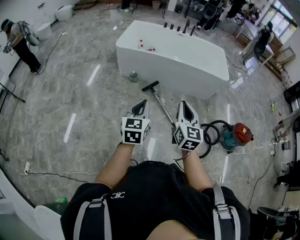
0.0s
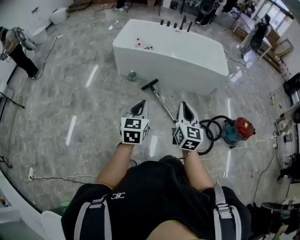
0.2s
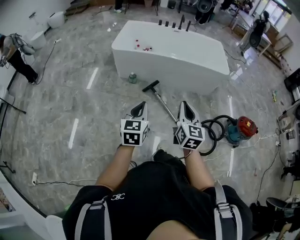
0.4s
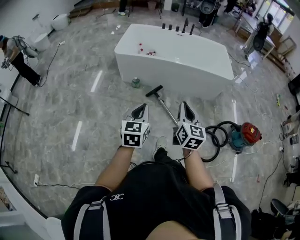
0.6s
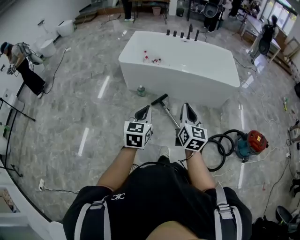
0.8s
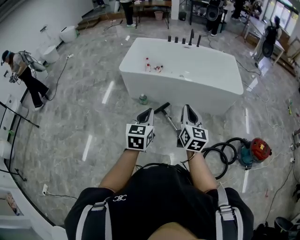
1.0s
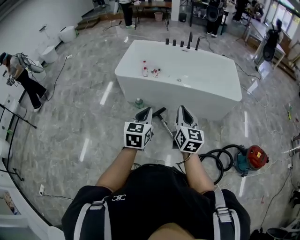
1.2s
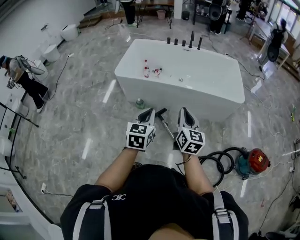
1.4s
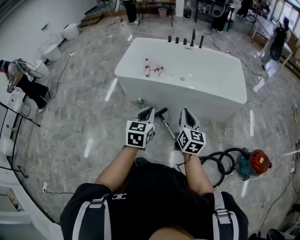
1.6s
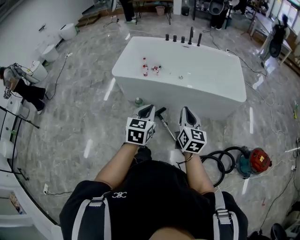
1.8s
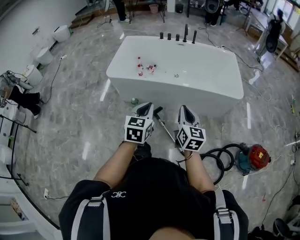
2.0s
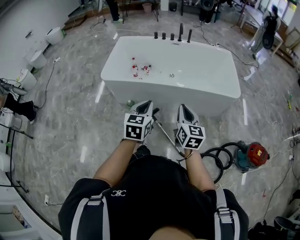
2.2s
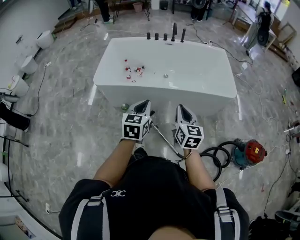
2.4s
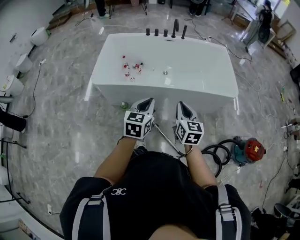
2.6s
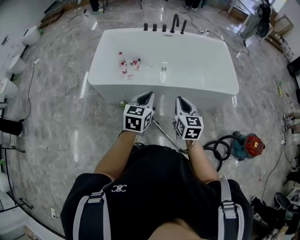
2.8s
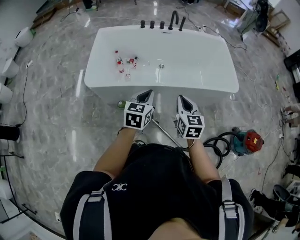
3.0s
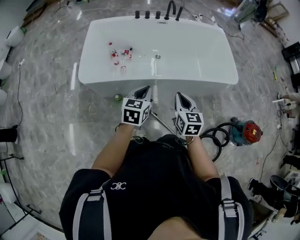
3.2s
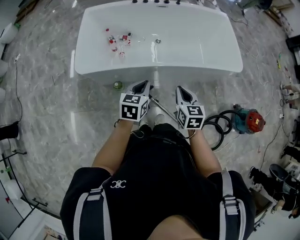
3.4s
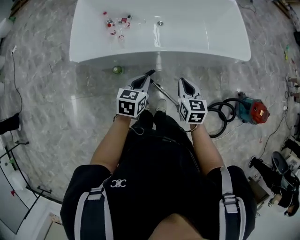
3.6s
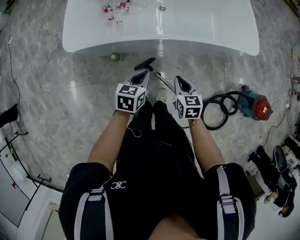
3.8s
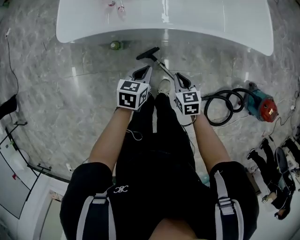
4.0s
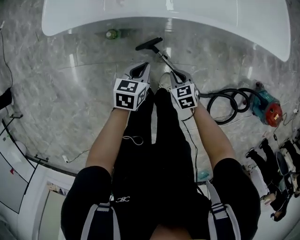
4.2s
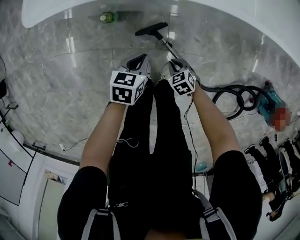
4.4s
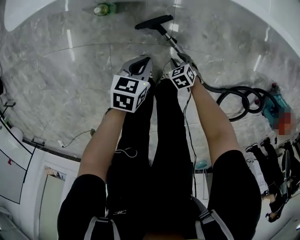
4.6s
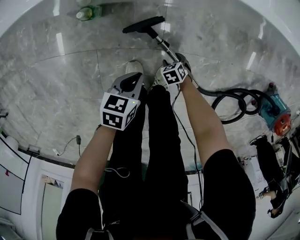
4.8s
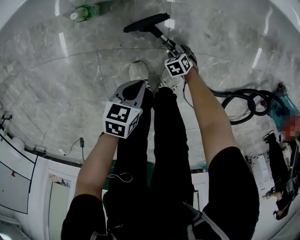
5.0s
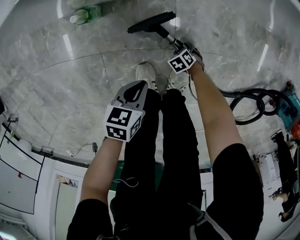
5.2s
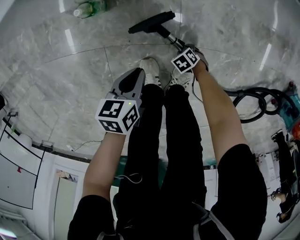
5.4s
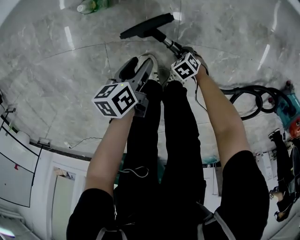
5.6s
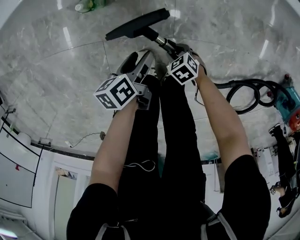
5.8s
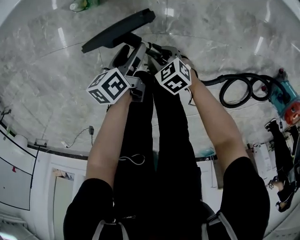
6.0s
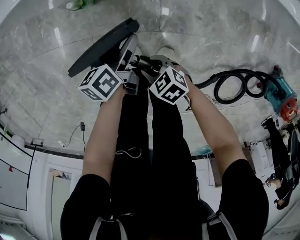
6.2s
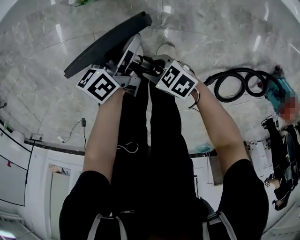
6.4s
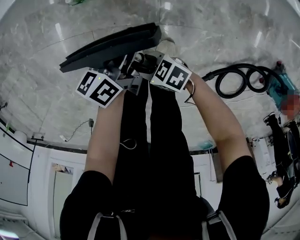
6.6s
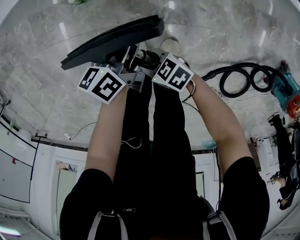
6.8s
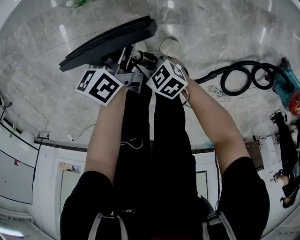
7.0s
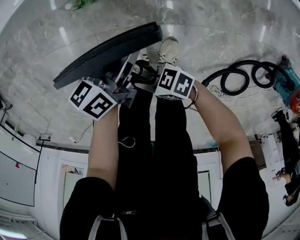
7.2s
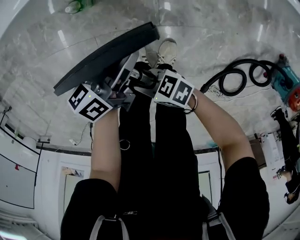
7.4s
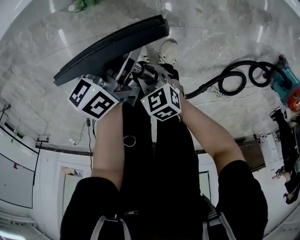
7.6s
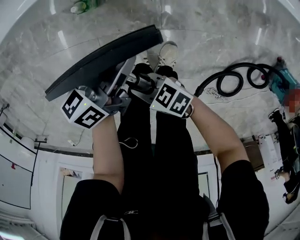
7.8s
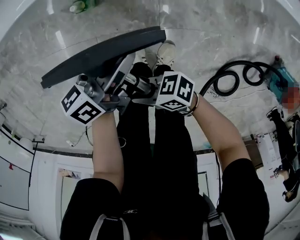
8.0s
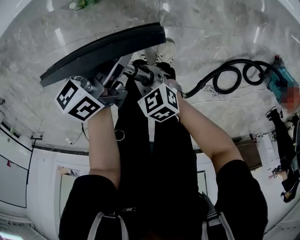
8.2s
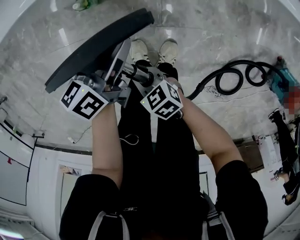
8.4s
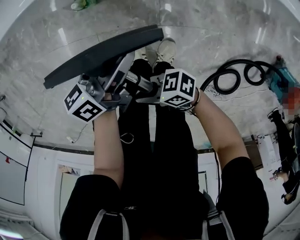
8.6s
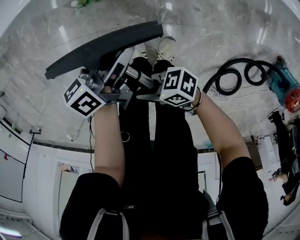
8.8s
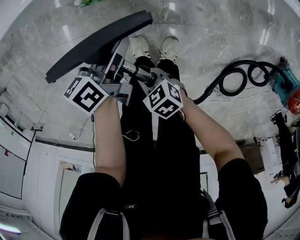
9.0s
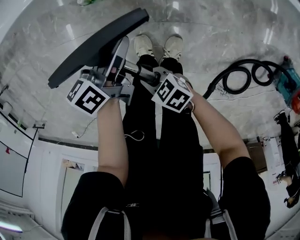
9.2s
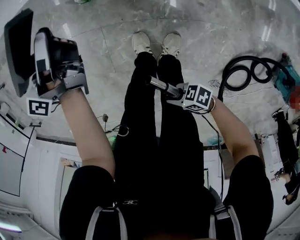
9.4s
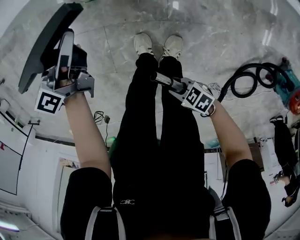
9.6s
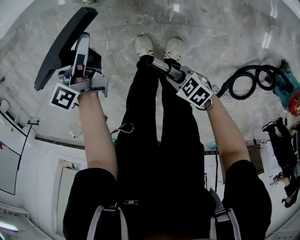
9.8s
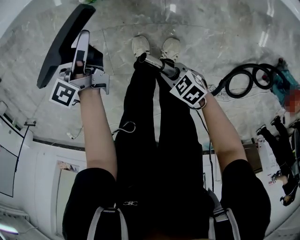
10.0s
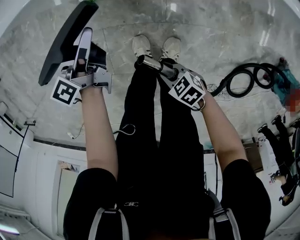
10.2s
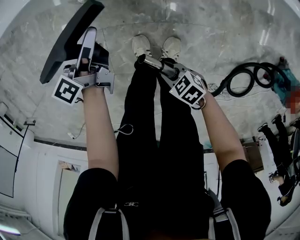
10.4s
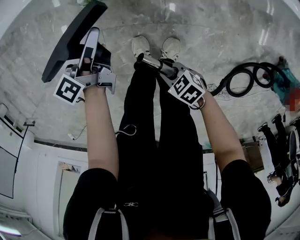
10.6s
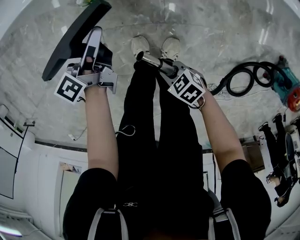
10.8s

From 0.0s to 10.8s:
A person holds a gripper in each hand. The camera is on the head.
From 0.0s to 1.6s: Both grippers travel together forward, about 35 cm.
From 1.6s to 3.0s: The left gripper heads forward, covering about 30 cm, and rotates roughly 20 degrees, while the right gripper travels forward and to the left by some 30 cm.
From 3.0s to 4.6s: The two grippers go some 70 cm downward. The right gripper tilts its fingers roughly 50 degrees downward, and opens up. The left gripper turns by some 40 degrees.
From 4.6s to 6.2s: The left gripper rotates about 40 degrees, and opens, while the right gripper travels downward and back again, approximately 20 cm each way, swivels about 30 degrees, and opens, then closes again.
From 6.2s to 7.8s: The two grippers go some 15 cm upward. The right gripper swivels approximately 20 degrees, and closes; the left gripper swivels some 30 degrees, and closes up.
From 9.2s to 10.8s: The left gripper moves some 10 cm upward and comes back.

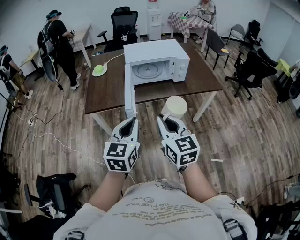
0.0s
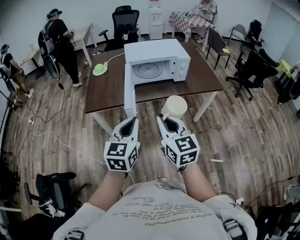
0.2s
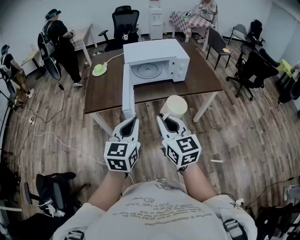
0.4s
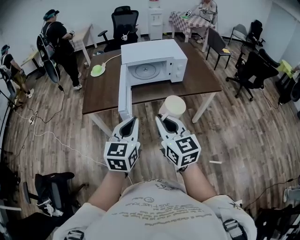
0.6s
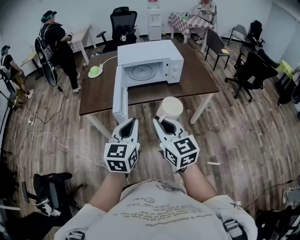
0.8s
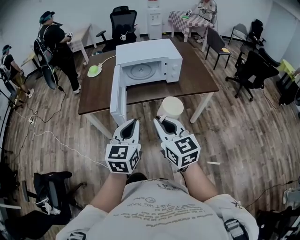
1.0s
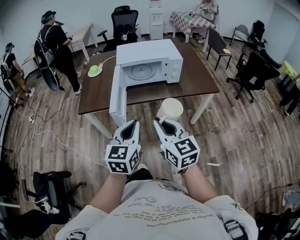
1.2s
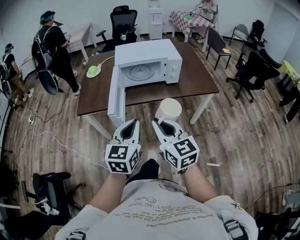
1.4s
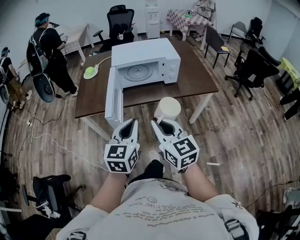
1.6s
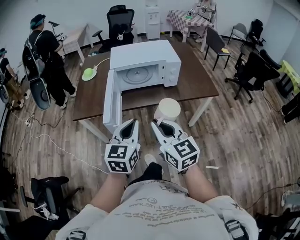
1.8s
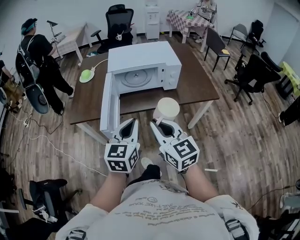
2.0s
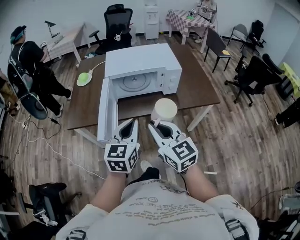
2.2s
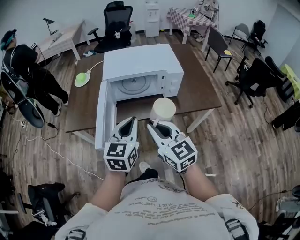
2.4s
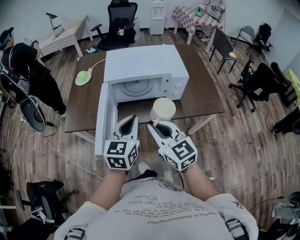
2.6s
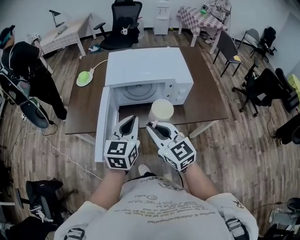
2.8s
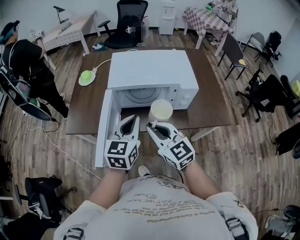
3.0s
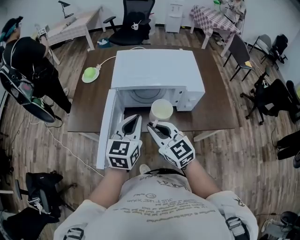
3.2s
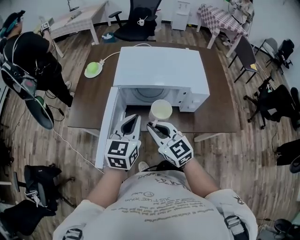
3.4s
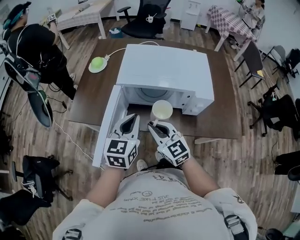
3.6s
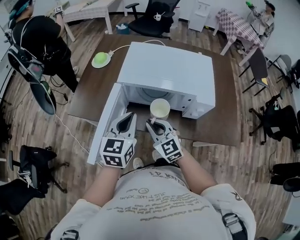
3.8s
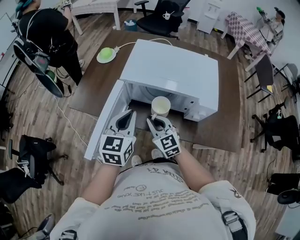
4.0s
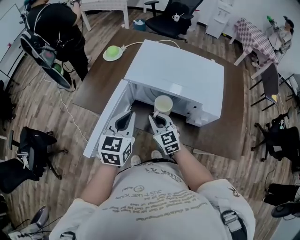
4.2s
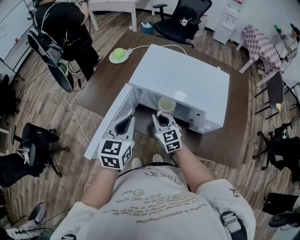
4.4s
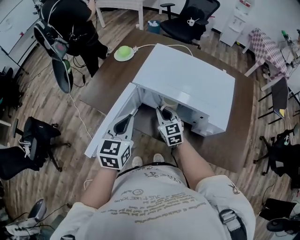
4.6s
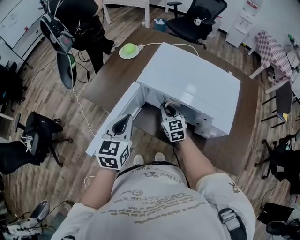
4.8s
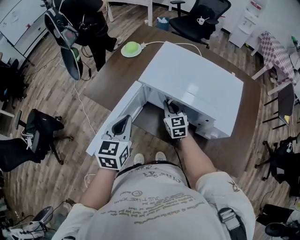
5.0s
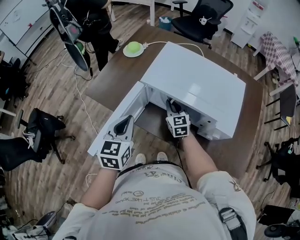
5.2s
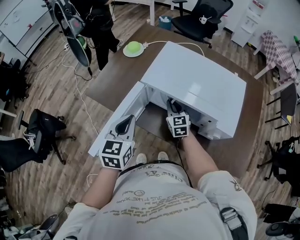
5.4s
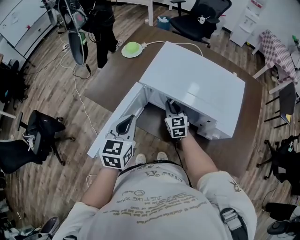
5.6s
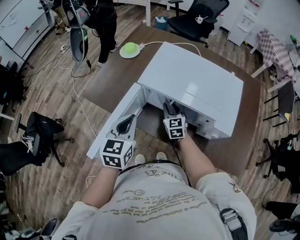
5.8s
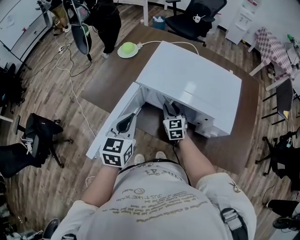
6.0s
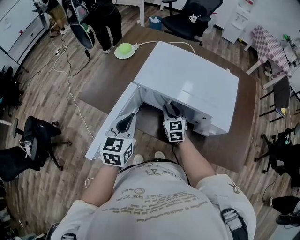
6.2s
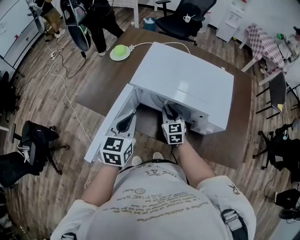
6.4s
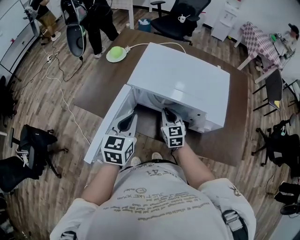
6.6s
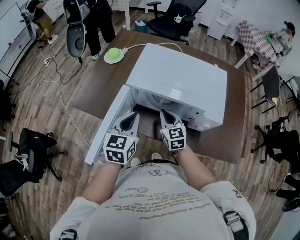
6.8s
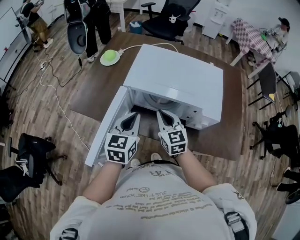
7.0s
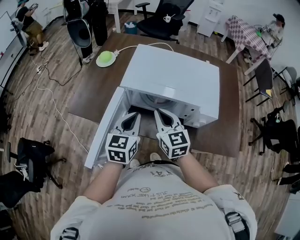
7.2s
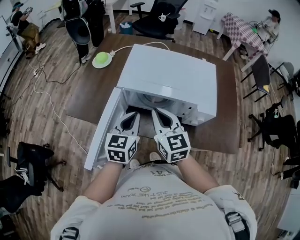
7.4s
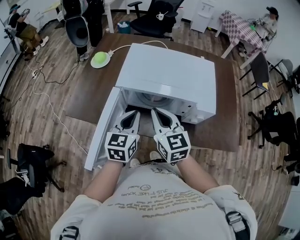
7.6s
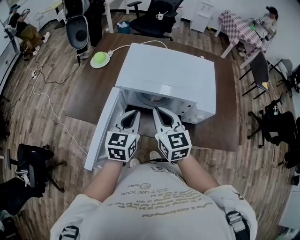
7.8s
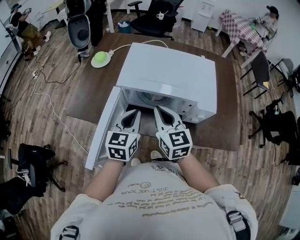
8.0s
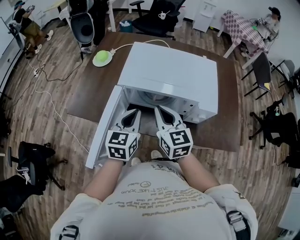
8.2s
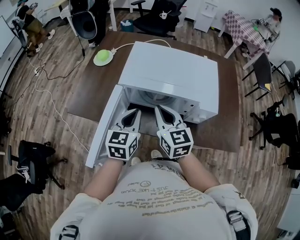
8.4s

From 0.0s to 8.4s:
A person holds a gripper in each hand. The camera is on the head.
From 0.0s to 1.4s: Both grippers travel together to the right, roughly 10 cm.
From 1.4s to 2.8s: The two grippers go some 25 cm forward.
From 2.8s to 4.2s: The left gripper is displaced forward by roughly 10 cm, and rotates some 20 degrees. The right gripper heads forward and downward, covering roughly 20 cm.
From 4.2s to 5.6s: The right gripper heads forward and downward, covering roughly 15 cm. Meanwhile the left gripper changes place by about 5 cm.
From 5.6s to 7.0s: The right gripper heads upward and backward, covering about 15 cm, and opens, then closes again. The left gripper moves to the right, approximately 5 cm.
From 7.0s to 8.4s: The right gripper moves upward, roughly 5 cm.

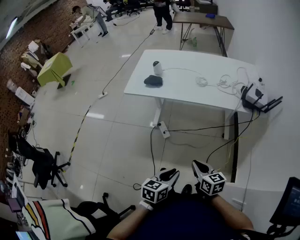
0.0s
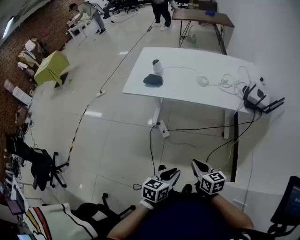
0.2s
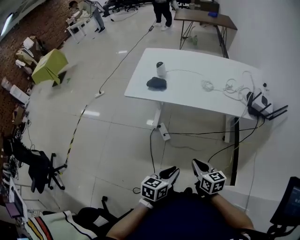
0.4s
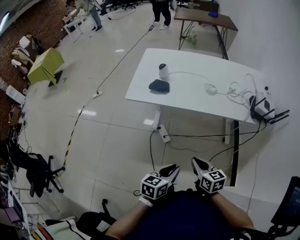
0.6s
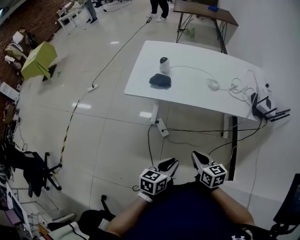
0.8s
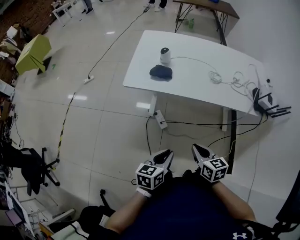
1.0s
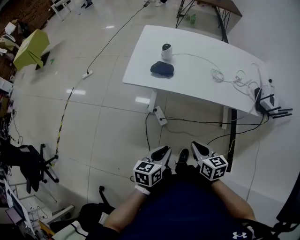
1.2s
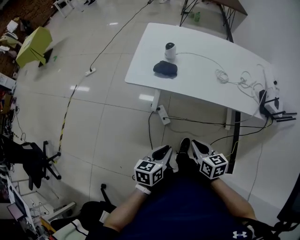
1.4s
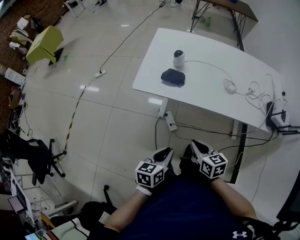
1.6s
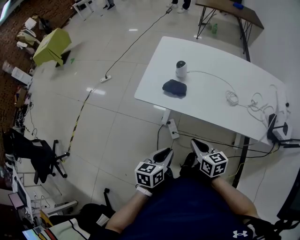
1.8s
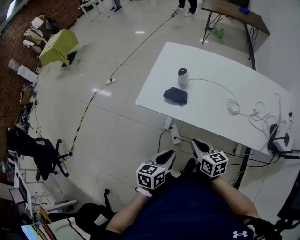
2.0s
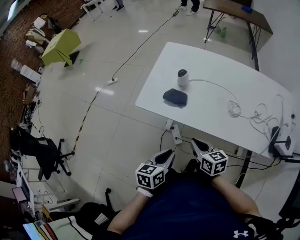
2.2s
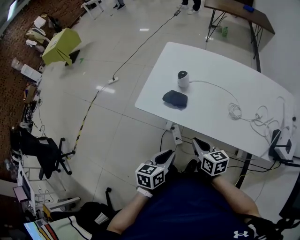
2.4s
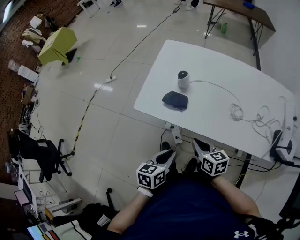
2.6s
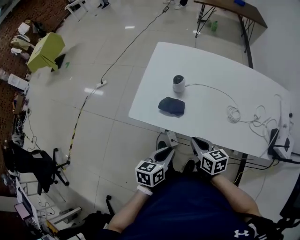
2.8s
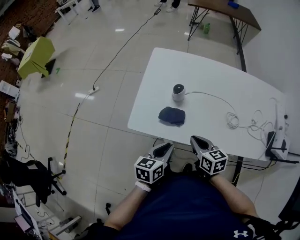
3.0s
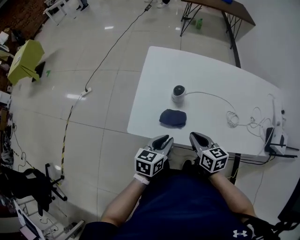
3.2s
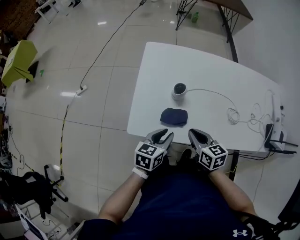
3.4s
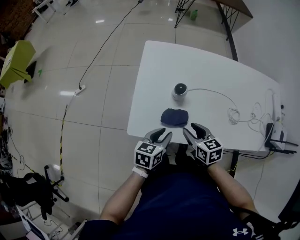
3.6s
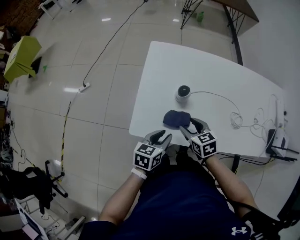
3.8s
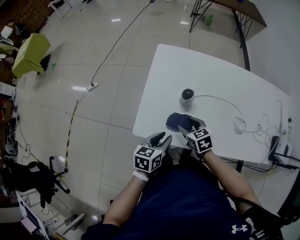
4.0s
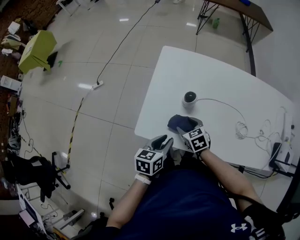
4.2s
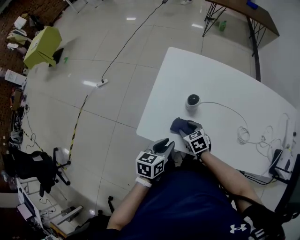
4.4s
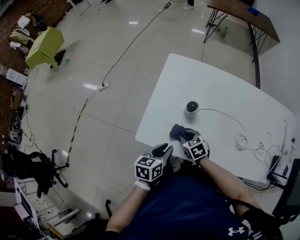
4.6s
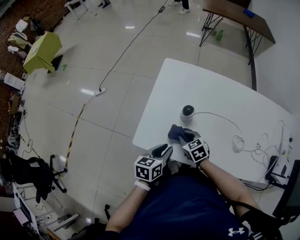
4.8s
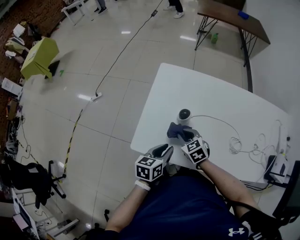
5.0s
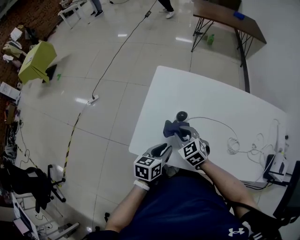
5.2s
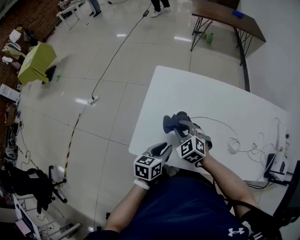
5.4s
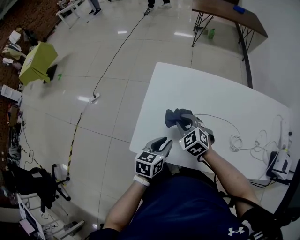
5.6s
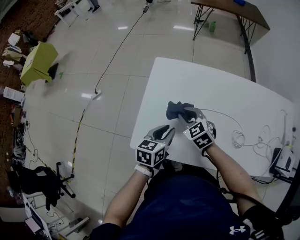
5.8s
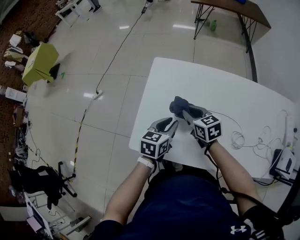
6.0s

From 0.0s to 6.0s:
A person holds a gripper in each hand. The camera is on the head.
From 0.0s to 1.6s: The two grippers go some 30 cm forward and to the left.
From 1.6s to 3.0s: Both grippers move forward, roughly 25 cm.
From 3.0s to 4.4s: The left gripper heads forward, covering approximately 5 cm. Meanwhile the right gripper moves downward, forward and to the left, approximately 20 cm, swivels some 30 degrees, and opens.
From 4.4s to 6.0s: The left gripper shifts about 15 cm forward and to the right, while the right gripper travels forward, upward and to the right by about 15 cm, changes its angle by about 20 degrees, and closes.
